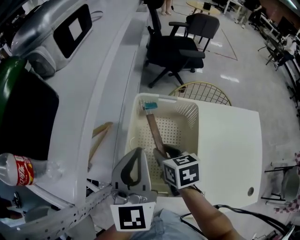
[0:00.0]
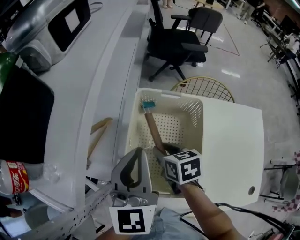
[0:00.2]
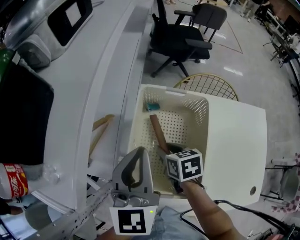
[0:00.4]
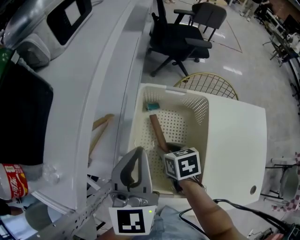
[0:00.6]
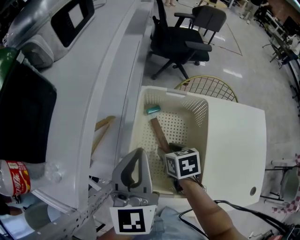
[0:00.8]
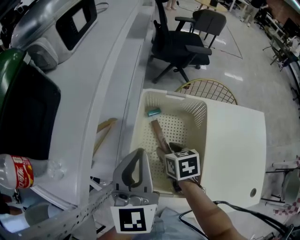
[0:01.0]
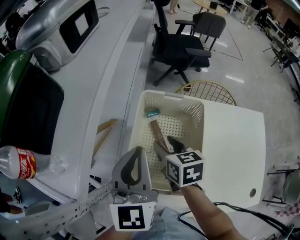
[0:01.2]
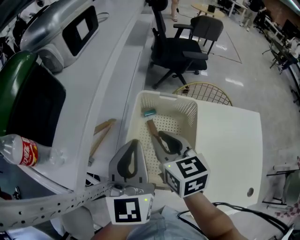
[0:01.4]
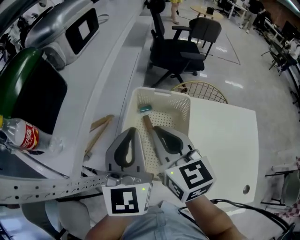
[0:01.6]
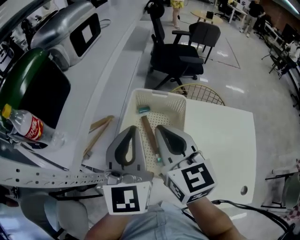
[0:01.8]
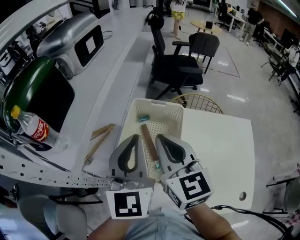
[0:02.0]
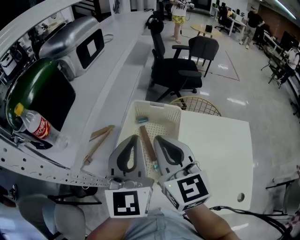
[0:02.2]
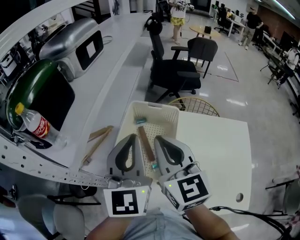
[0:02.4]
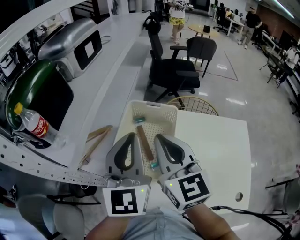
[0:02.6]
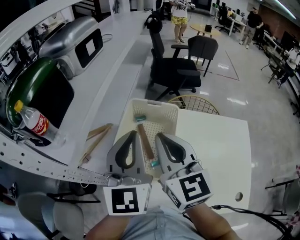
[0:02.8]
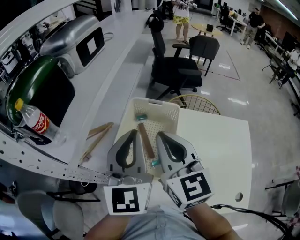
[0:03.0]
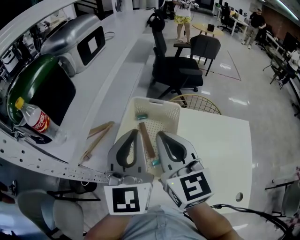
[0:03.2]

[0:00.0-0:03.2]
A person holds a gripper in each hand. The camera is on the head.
0:00.0 to 0:01.6: The right gripper is displaced upward by roughly 20 cm, points its fingers some 30 degrees further upward, and closes up, while the left gripper heads upward, covering approximately 5 cm.
0:01.6 to 0:03.2: Both grippers move backward and upward, roughly 10 cm.

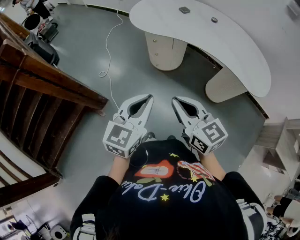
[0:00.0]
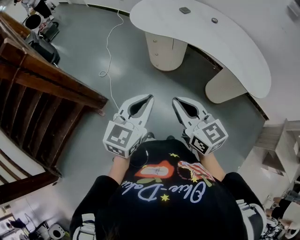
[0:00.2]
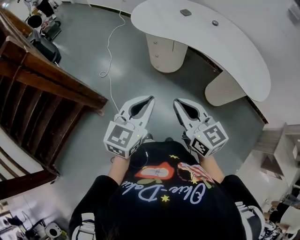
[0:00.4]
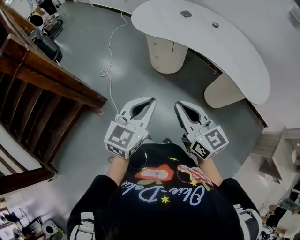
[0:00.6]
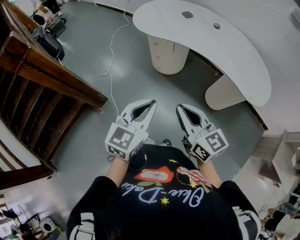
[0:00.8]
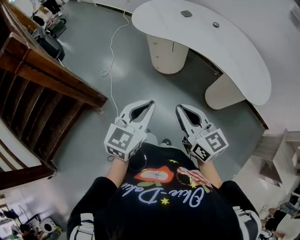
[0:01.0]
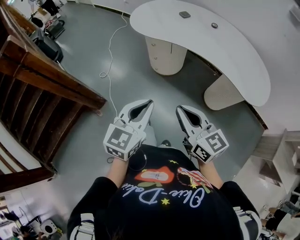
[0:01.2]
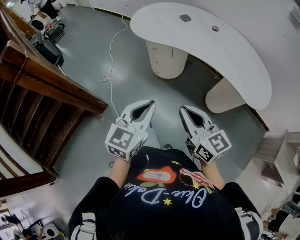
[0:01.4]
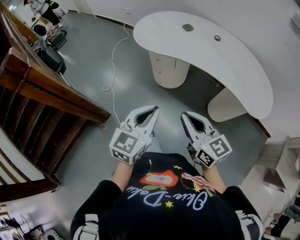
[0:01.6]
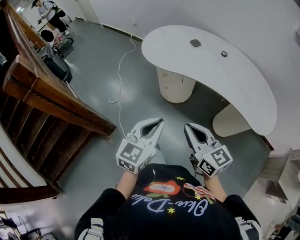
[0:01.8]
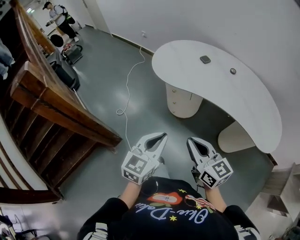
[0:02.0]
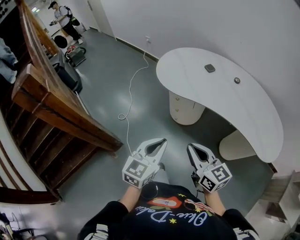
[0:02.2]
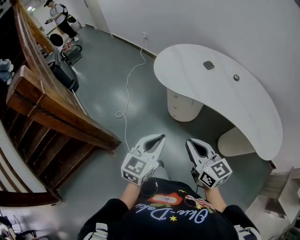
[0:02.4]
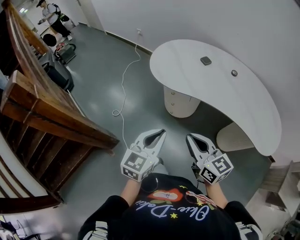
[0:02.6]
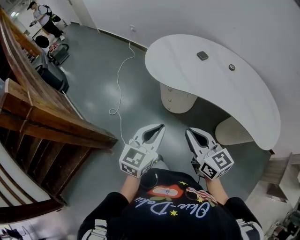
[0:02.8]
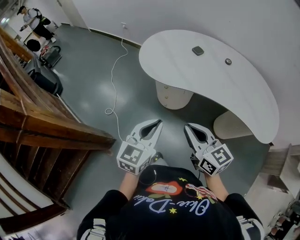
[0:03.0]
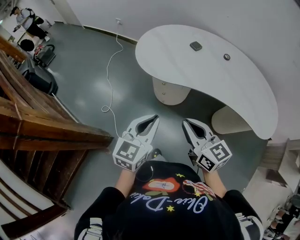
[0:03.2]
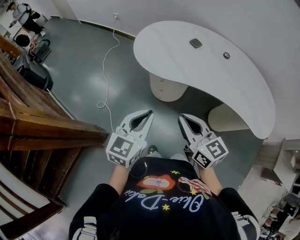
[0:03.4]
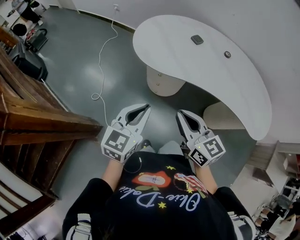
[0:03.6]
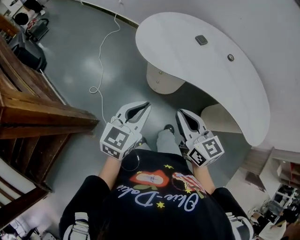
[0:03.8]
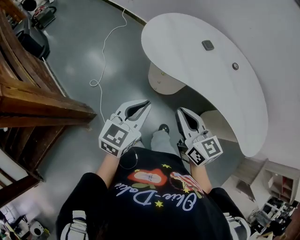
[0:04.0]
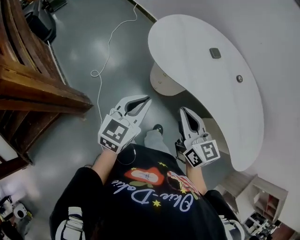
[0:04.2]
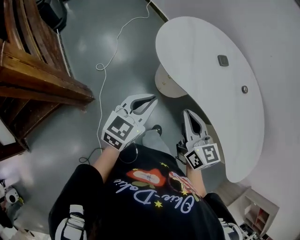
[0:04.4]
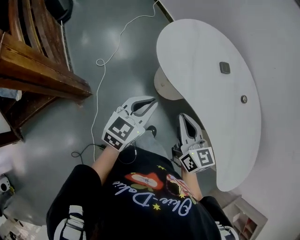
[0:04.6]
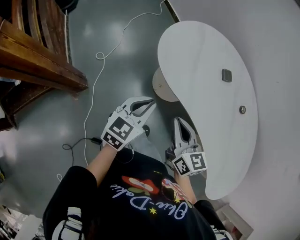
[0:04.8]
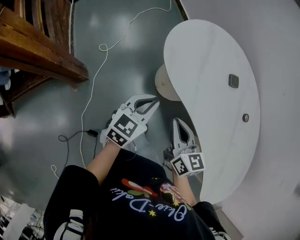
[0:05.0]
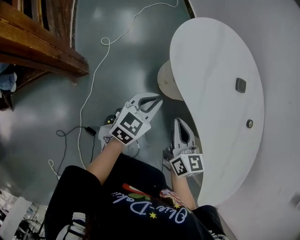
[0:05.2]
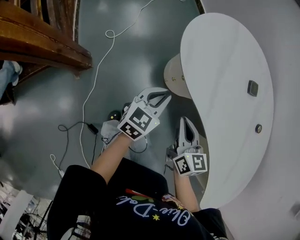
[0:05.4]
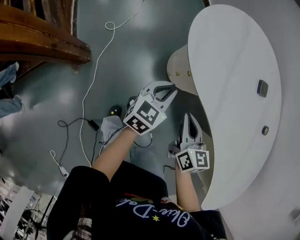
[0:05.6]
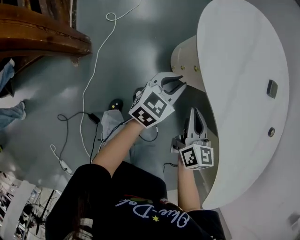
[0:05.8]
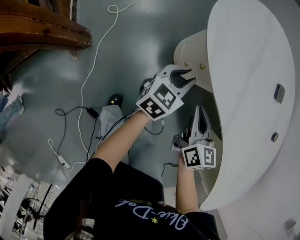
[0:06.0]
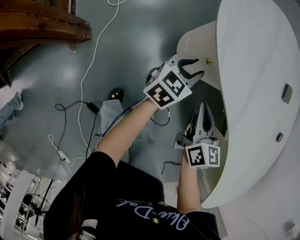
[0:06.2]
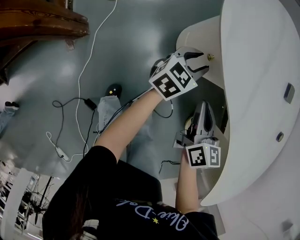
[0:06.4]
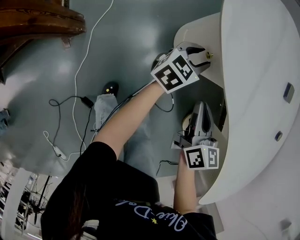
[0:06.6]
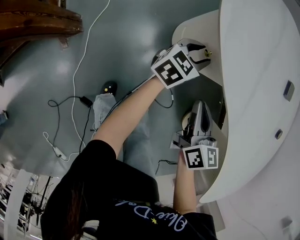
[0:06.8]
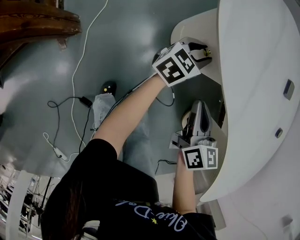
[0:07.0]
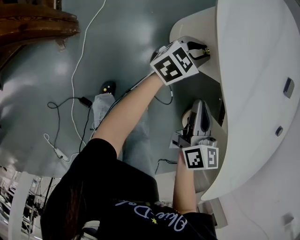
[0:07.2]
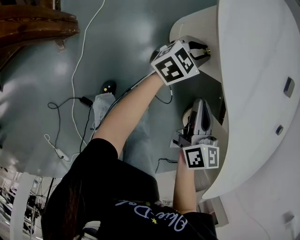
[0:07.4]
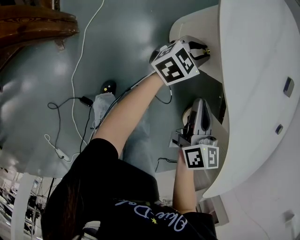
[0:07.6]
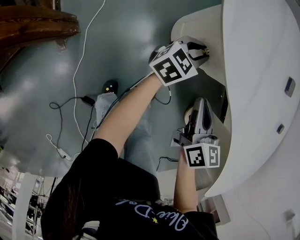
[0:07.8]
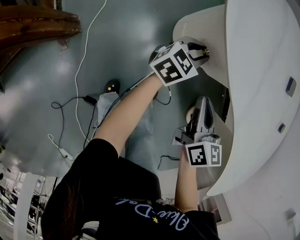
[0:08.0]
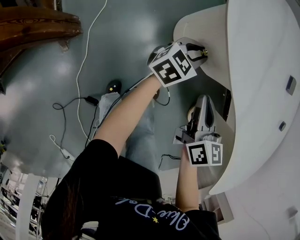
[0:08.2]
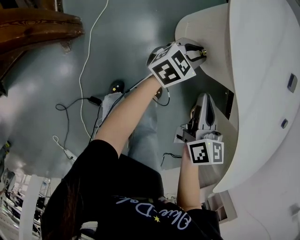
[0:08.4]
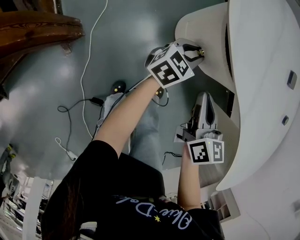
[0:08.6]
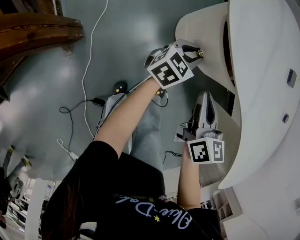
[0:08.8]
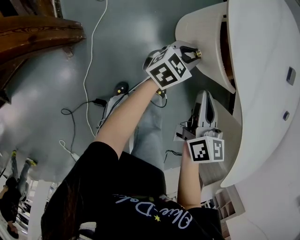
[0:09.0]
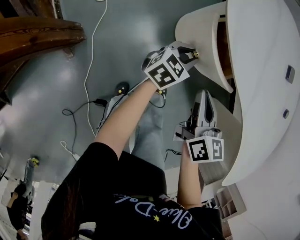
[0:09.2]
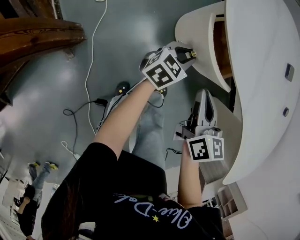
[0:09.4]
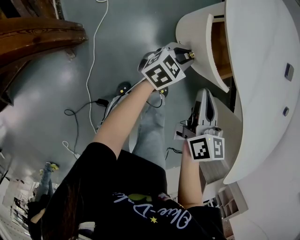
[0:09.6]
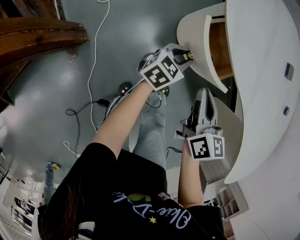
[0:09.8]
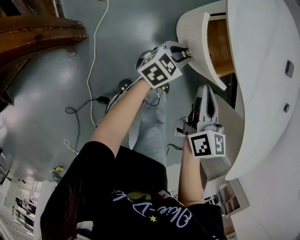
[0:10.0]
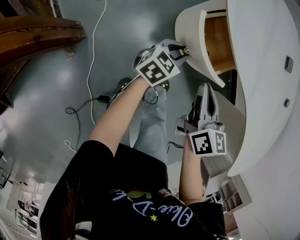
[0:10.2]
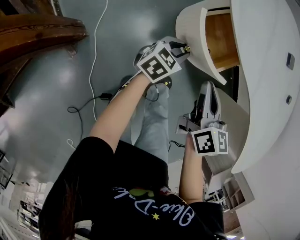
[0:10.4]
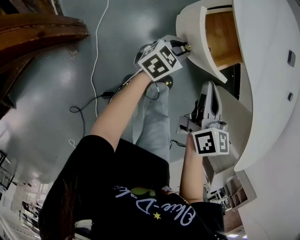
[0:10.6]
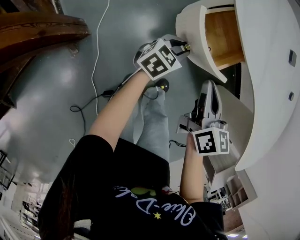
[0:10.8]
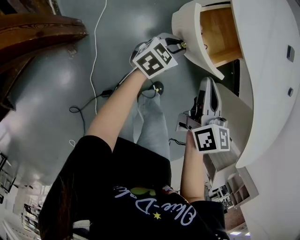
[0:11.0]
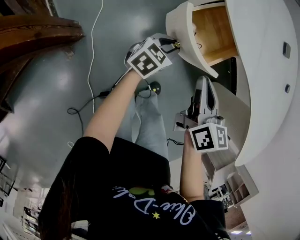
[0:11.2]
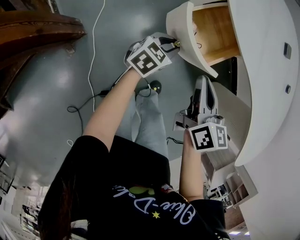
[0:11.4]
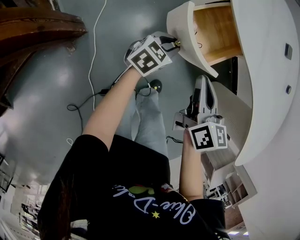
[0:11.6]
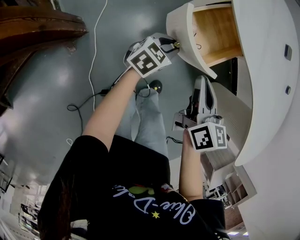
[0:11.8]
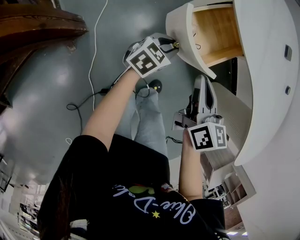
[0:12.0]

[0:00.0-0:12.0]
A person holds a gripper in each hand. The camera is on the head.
0:00.0 to 0:01.6: The left gripper goes some 5 cm forward. Meanwhile the right gripper moves to the right, roughly 5 cm.
0:01.6 to 0:03.0: The grippers both shift forward and to the left by roughly 20 cm.
0:03.0 to 0:04.4: The two grippers go roughly 15 cm forward.
0:04.4 to 0:06.0: The right gripper goes some 25 cm downward. Meanwhile the left gripper travels downward and forward by roughly 35 cm.
0:06.0 to 0:07.6: The left gripper goes approximately 10 cm downward and forward.
0:07.6 to 0:09.0: The right gripper shifts approximately 5 cm to the left. Meanwhile the left gripper is displaced backward by approximately 5 cm.
0:09.0 to 0:10.4: The left gripper is displaced backward by roughly 5 cm.
0:10.4 to 0:12.0: Both grippers move backward, roughly 5 cm.

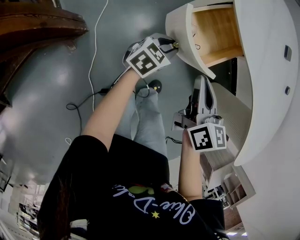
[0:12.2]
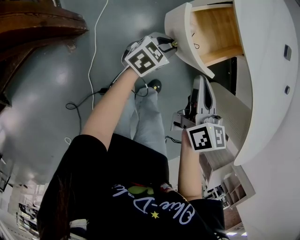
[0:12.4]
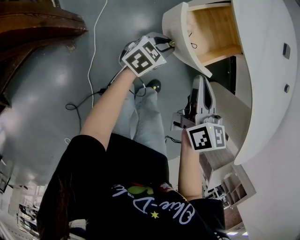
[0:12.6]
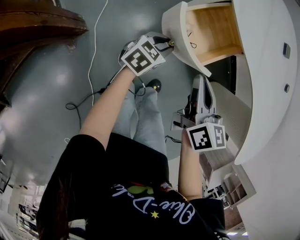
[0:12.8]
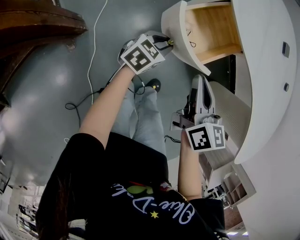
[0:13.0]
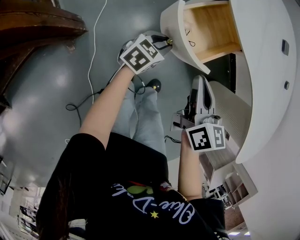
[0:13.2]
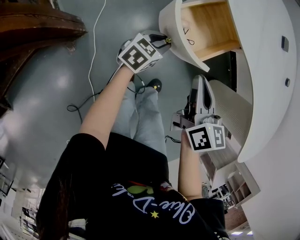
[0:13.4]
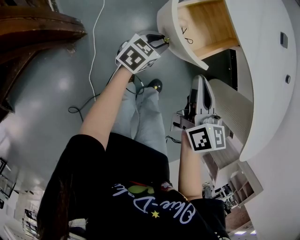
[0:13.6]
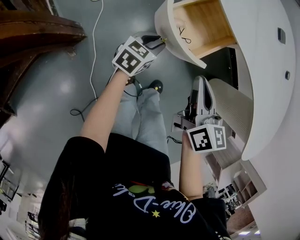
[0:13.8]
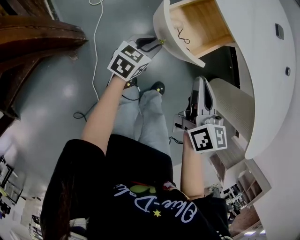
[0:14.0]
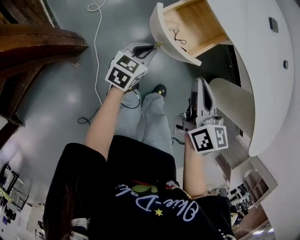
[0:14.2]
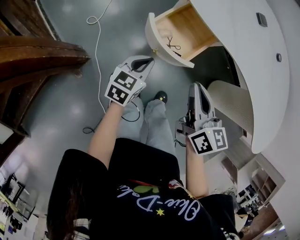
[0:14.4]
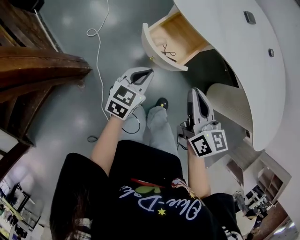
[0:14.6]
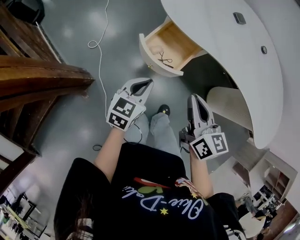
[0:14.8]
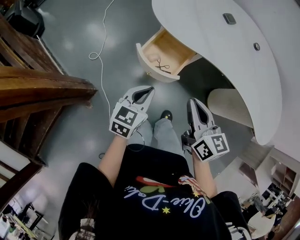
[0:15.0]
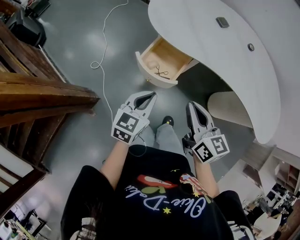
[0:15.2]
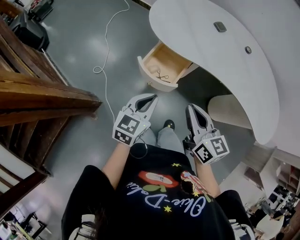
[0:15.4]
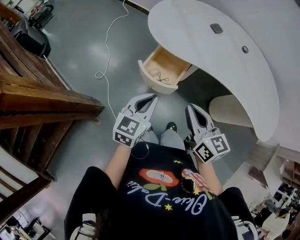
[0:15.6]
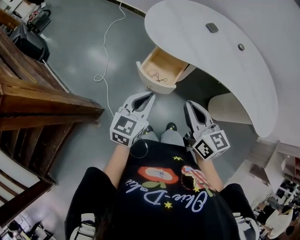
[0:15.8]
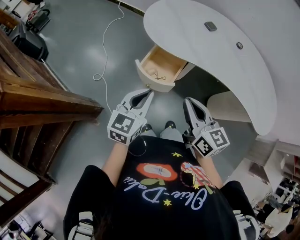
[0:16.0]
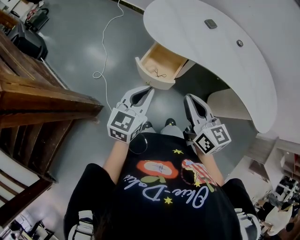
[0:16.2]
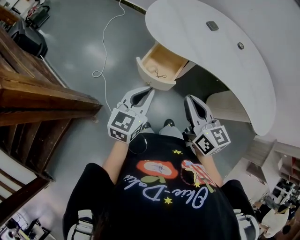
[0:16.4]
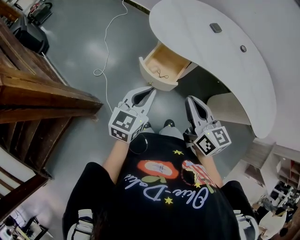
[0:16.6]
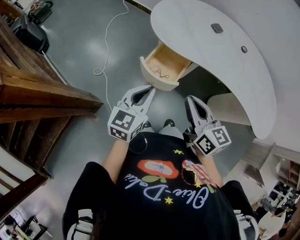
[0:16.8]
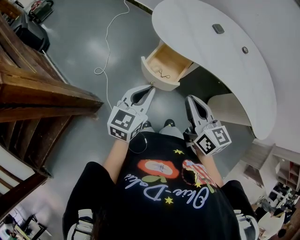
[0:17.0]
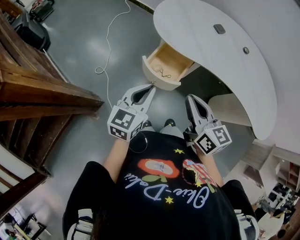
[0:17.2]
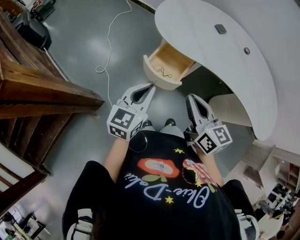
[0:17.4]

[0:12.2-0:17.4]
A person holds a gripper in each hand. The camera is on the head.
0:12.2 to 0:14.0: The right gripper ends up about 5 cm from where it was.
0:14.0 to 0:15.6: The left gripper heads upward, covering about 25 cm, and closes; the right gripper is displaced upward by roughly 15 cm.
0:15.6 to 0:17.4: The left gripper ends up approximately 5 cm from where it was.

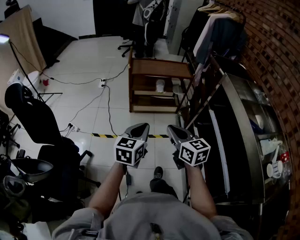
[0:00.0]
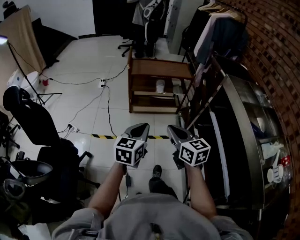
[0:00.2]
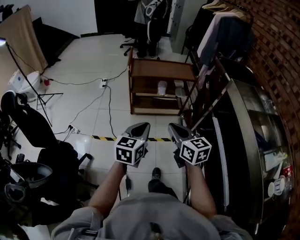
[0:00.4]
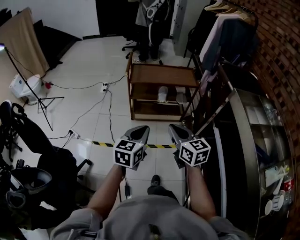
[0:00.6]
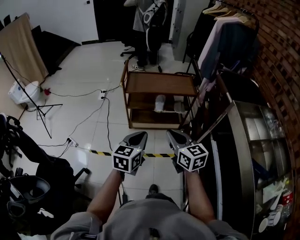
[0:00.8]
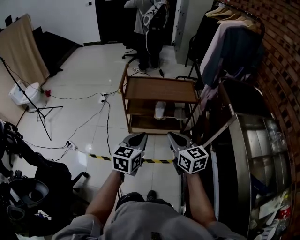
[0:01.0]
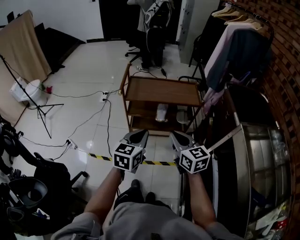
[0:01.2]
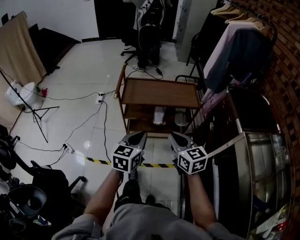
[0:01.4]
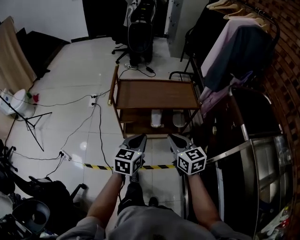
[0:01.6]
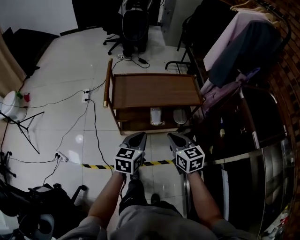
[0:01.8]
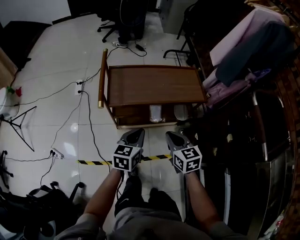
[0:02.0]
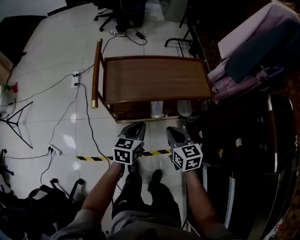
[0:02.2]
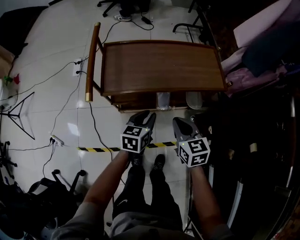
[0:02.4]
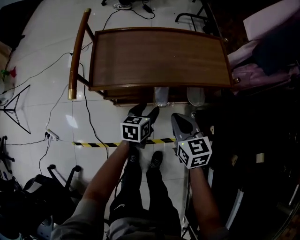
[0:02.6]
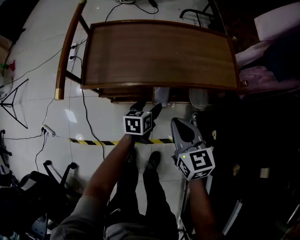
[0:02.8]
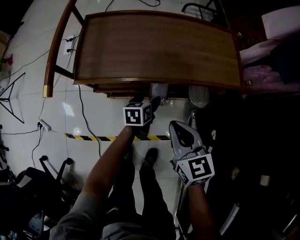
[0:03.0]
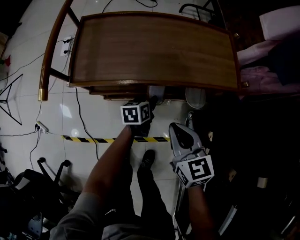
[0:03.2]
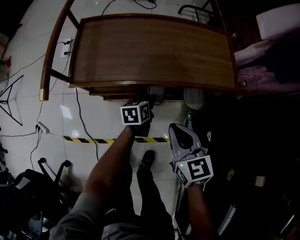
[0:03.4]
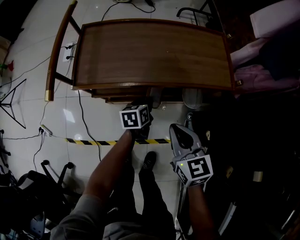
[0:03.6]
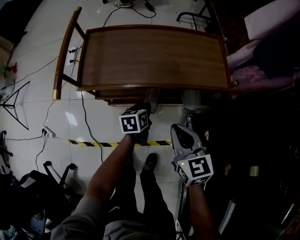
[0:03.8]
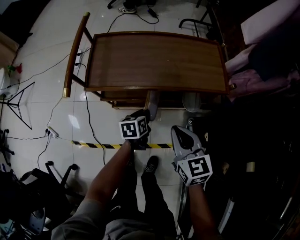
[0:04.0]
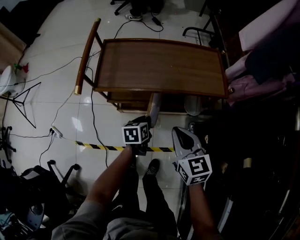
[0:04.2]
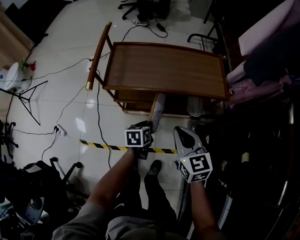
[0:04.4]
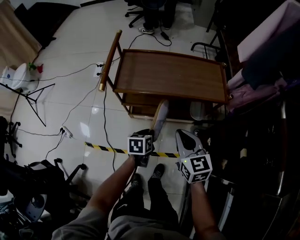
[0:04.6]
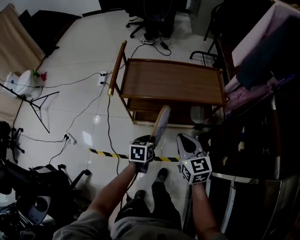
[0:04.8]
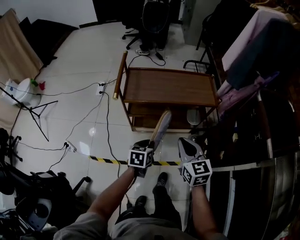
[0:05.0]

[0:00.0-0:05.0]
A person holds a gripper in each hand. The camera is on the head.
0:00.0 to 0:01.6: The two grippers travel together, forward, roughly 40 cm.
0:01.6 to 0:03.4: The right gripper moves downward and forward, some 30 cm. Meanwhile the left gripper moves downward and forward, roughly 50 cm, rotates roughly 30 degrees, and opens and closes again.
0:03.4 to 0:05.0: The left gripper is displaced backward and upward by roughly 35 cm; the right gripper is displaced upward and backward by some 25 cm.
